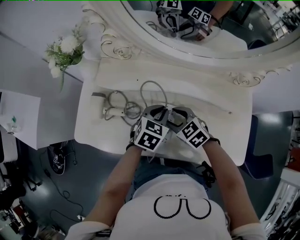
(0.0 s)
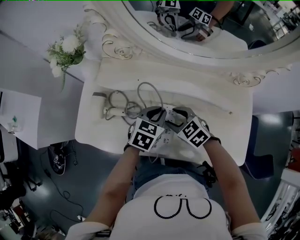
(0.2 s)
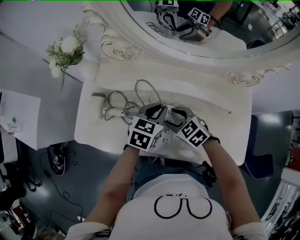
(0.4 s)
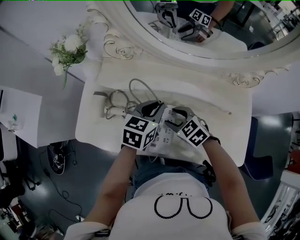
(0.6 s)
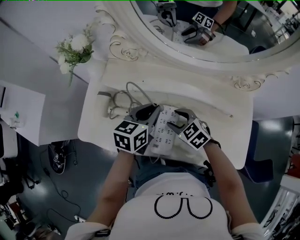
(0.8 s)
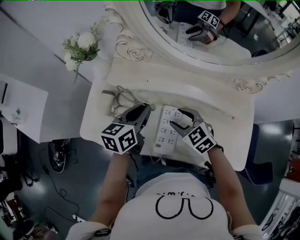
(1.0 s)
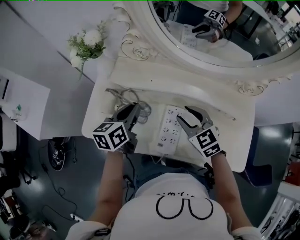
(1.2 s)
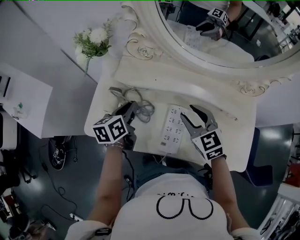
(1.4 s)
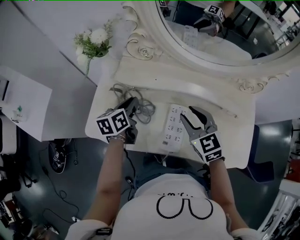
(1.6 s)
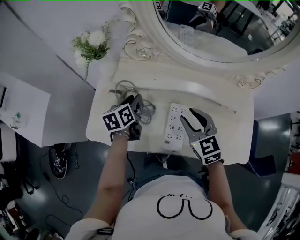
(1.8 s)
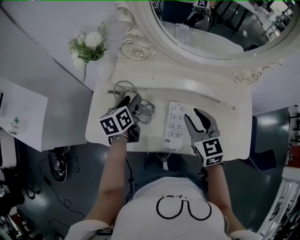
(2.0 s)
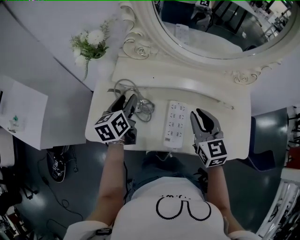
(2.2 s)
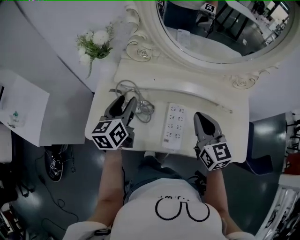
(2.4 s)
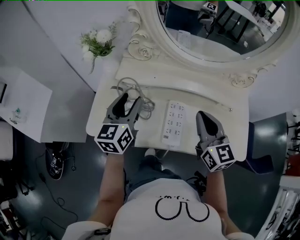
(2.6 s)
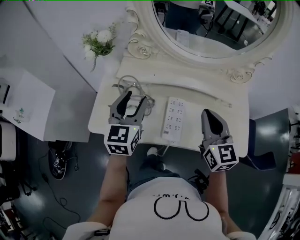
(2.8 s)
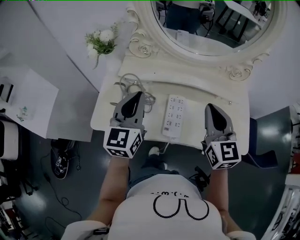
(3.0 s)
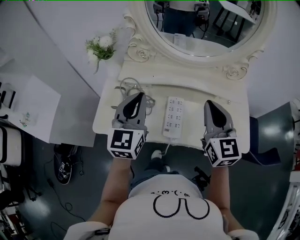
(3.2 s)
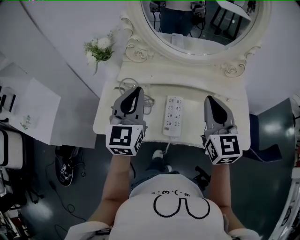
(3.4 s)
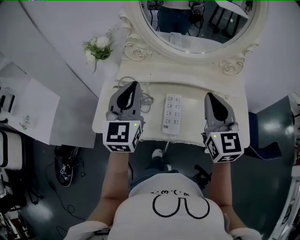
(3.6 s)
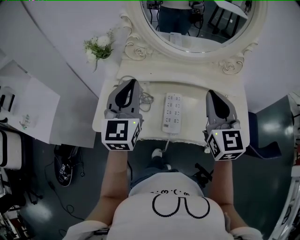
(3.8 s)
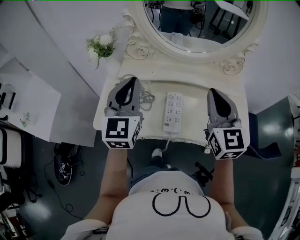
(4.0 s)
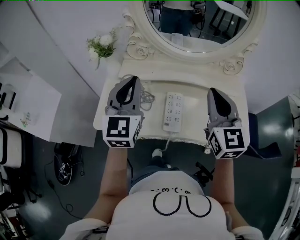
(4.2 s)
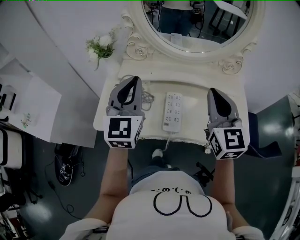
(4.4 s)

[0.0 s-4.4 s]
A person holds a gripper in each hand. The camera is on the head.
0.0 to 1.4 s: The left gripper heads to the left, covering about 20 cm, and twists some 40 degrees counterclockwise, seen from behind. The right gripper moves upward, some 10 cm, and rotates roughly 20 degrees.
1.4 to 3.0 s: The two grippers go about 20 cm upward and backward. The left gripper changes its angle by roughly 40 degrees, and opens and closes again. The right gripper turns by roughly 30 degrees, and closes.
3.0 to 4.4 s: The grippers both shift upward by roughly 5 cm.

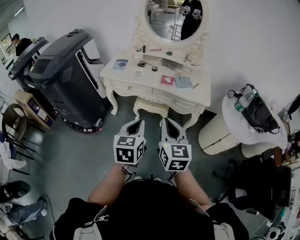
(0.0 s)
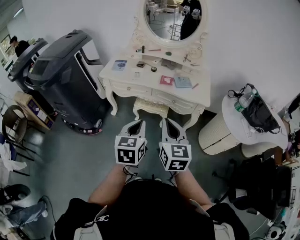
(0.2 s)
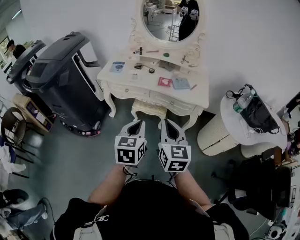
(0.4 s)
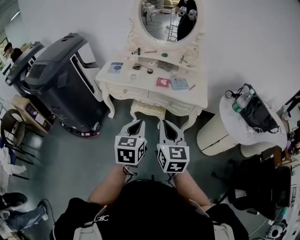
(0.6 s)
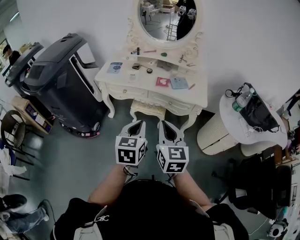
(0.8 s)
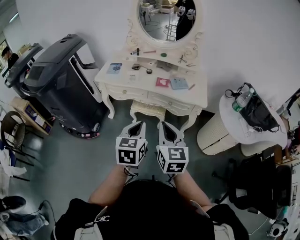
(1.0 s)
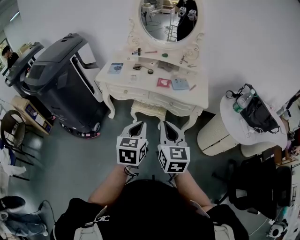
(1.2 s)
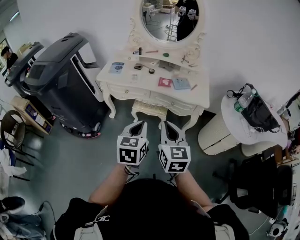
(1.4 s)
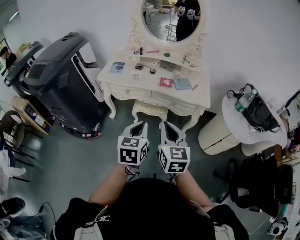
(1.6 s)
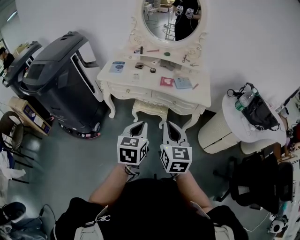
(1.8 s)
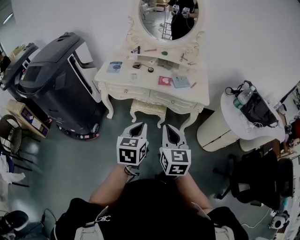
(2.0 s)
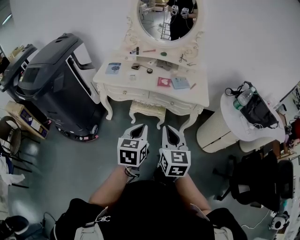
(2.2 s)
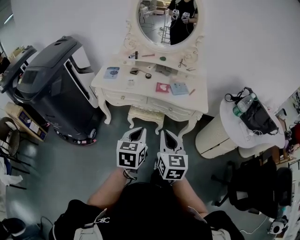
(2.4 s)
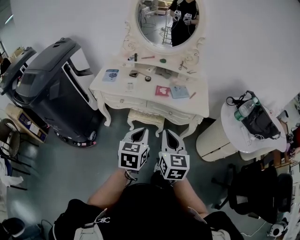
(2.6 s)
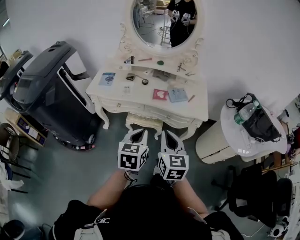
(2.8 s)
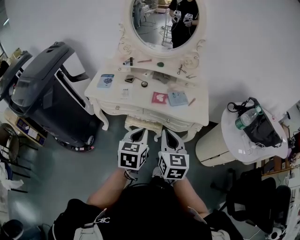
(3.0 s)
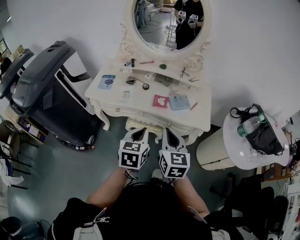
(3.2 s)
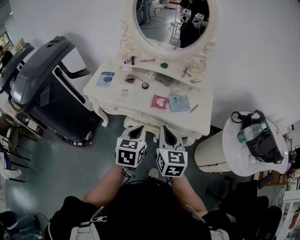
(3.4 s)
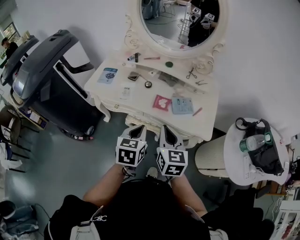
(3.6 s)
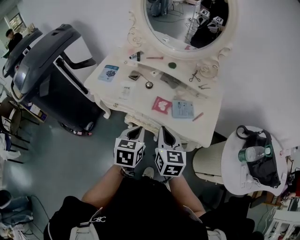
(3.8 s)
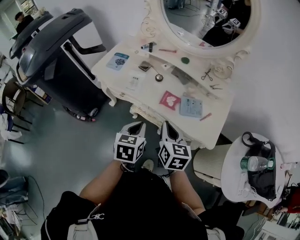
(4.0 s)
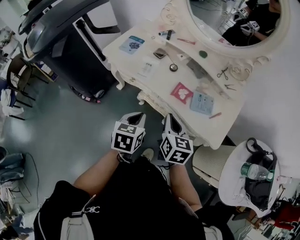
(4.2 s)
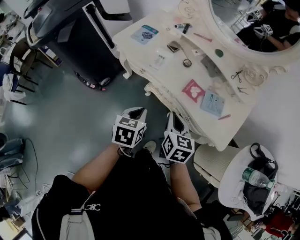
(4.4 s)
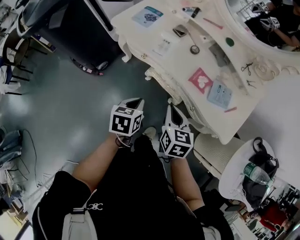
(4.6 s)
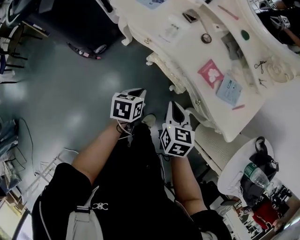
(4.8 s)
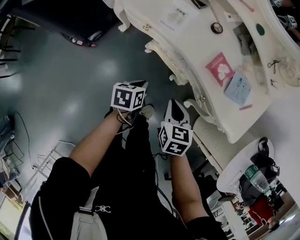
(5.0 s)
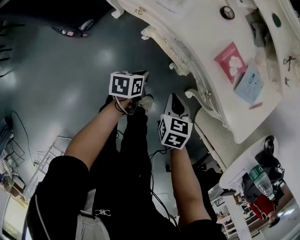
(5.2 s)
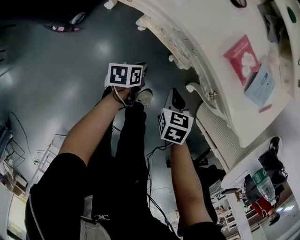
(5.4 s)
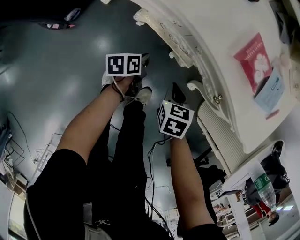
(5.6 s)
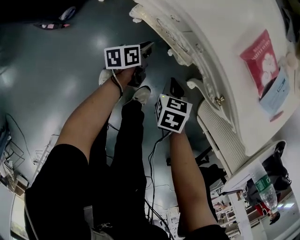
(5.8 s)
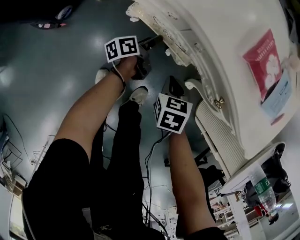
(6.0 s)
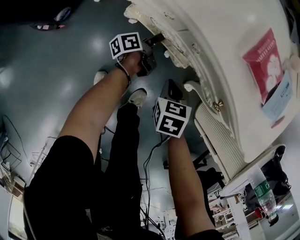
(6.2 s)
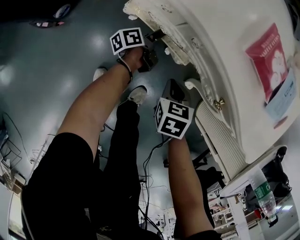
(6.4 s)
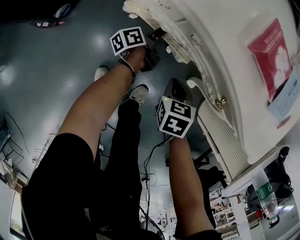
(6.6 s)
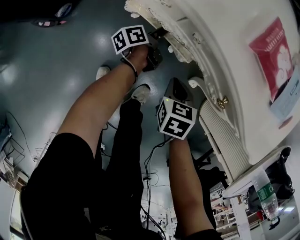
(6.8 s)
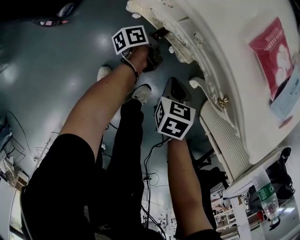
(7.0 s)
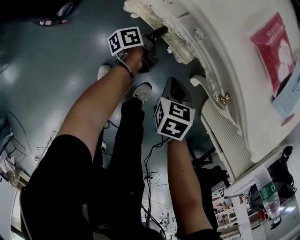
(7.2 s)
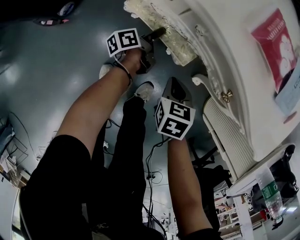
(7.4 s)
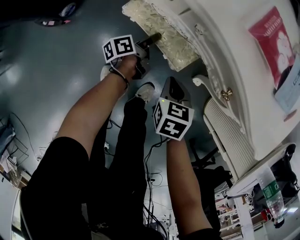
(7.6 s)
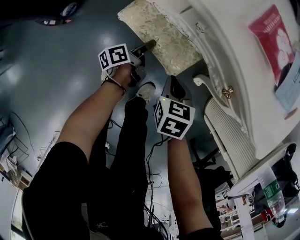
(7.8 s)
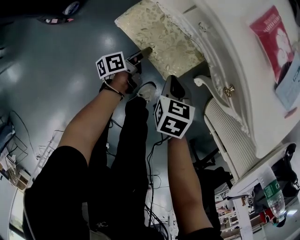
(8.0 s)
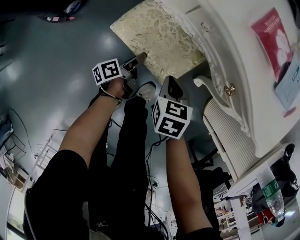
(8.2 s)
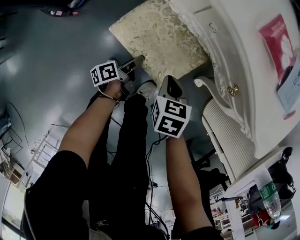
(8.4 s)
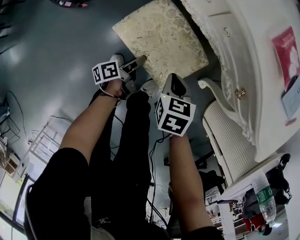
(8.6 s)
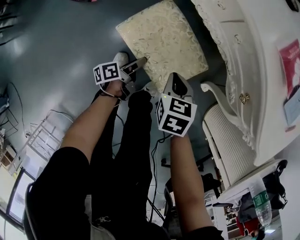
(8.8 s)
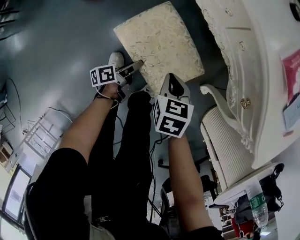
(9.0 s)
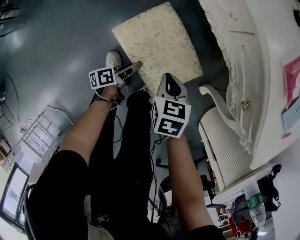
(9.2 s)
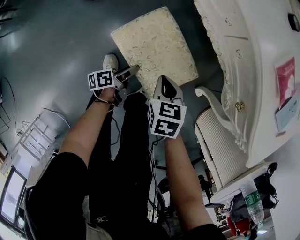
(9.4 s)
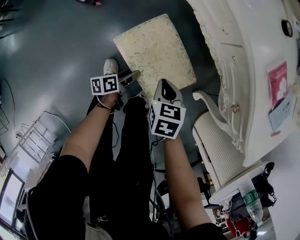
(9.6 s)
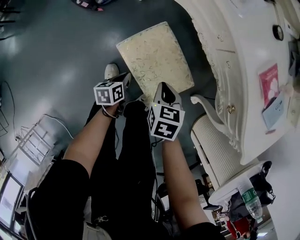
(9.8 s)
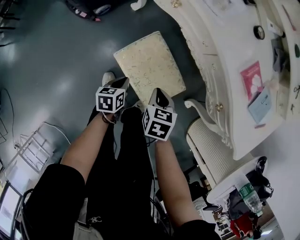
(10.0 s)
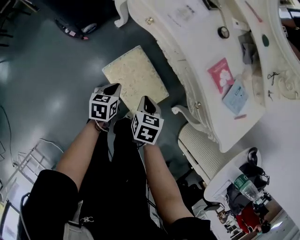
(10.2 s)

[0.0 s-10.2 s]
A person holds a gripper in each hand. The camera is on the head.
0.0 to 1.4 s: The grippers make only small movements.
1.4 to 3.0 s: The two grippers go about 15 cm forward.
3.0 to 4.4 s: The right gripper goes roughly 20 cm forward and downward, and turns by about 30 degrees. The left gripper goes roughly 15 cm downward, forward and to the left, and turns by approximately 30 degrees.
4.4 to 5.8 s: Both grippers travel together downward, roughly 40 cm. The right gripper tilts its fingers approximately 30 degrees downward. The left gripper rotates about 40 degrees.
5.8 to 7.2 s: The left gripper shifts by approximately 5 cm, turns by some 20 degrees, and opens.
7.2 to 8.8 s: The right gripper heads to the left, covering about 5 cm; the left gripper heads backward, covering some 25 cm.
8.8 to 10.2 s: The right gripper is displaced upward and to the left by about 10 cm, while the left gripper is displaced upward by roughly 20 cm, rotates around the line of its fingers by approximately 50 degrees, clockwise from behind, and closes its fingers.

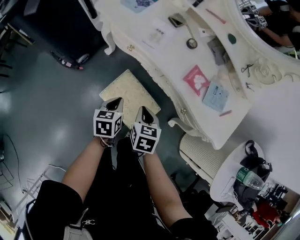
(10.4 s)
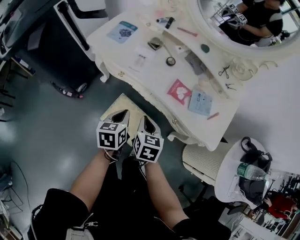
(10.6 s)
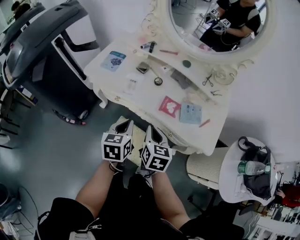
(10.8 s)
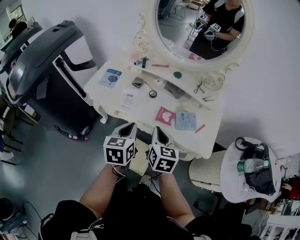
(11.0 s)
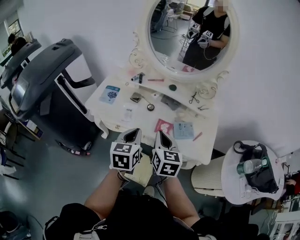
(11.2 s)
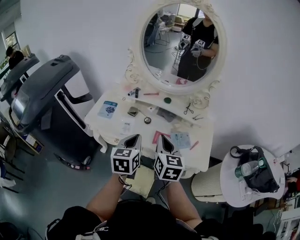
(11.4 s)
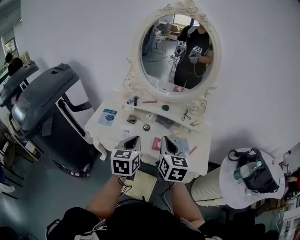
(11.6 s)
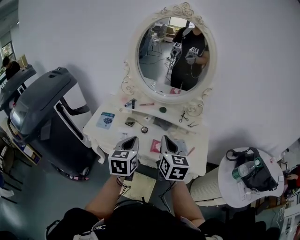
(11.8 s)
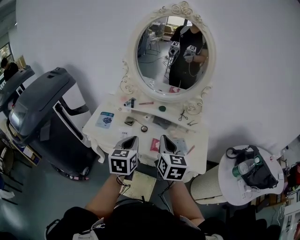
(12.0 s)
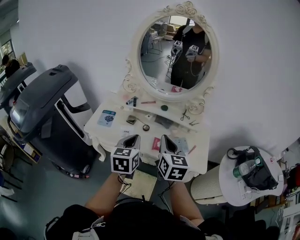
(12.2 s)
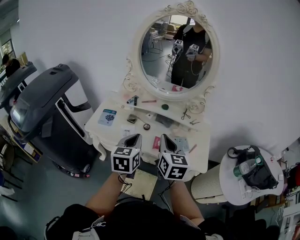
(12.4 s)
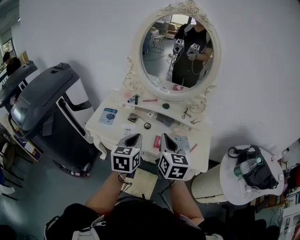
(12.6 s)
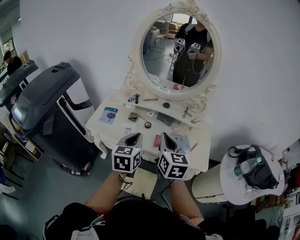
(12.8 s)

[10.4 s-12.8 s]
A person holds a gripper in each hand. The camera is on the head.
10.4 to 11.6 s: The two grippers go about 40 cm upward. The right gripper angles its fingers upward, by about 30 degrees. The left gripper swivels about 40 degrees.
11.6 to 12.8 s: The grippers make only small movements.

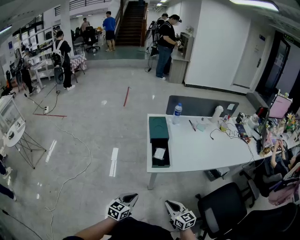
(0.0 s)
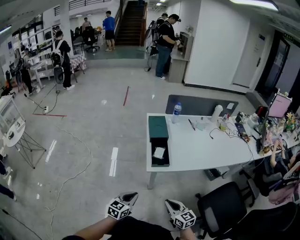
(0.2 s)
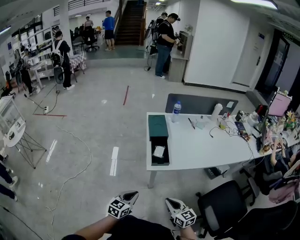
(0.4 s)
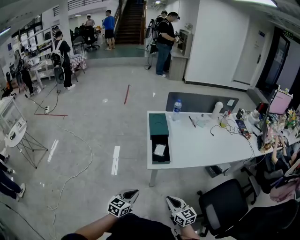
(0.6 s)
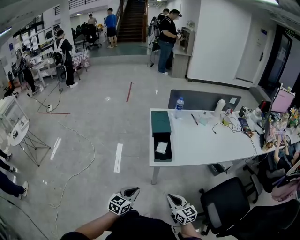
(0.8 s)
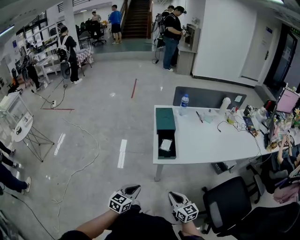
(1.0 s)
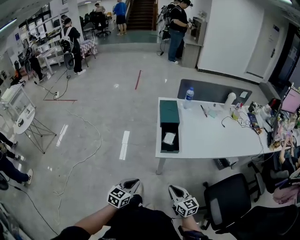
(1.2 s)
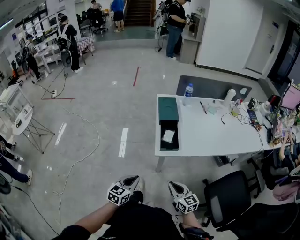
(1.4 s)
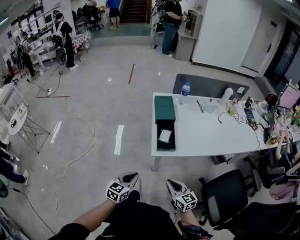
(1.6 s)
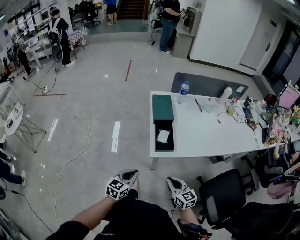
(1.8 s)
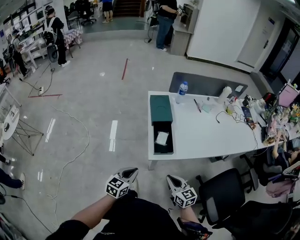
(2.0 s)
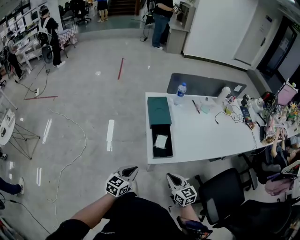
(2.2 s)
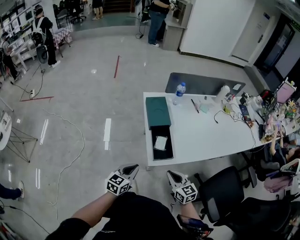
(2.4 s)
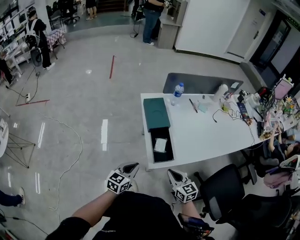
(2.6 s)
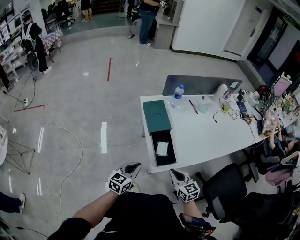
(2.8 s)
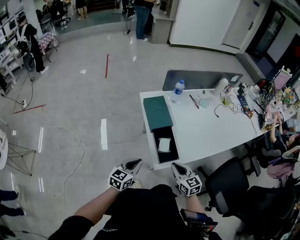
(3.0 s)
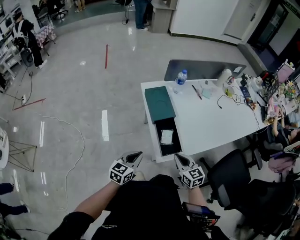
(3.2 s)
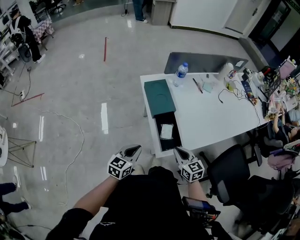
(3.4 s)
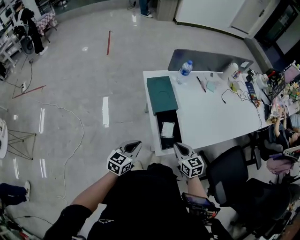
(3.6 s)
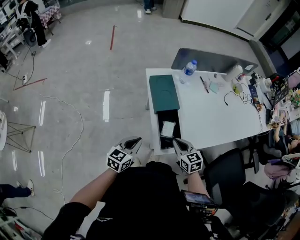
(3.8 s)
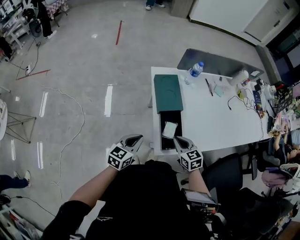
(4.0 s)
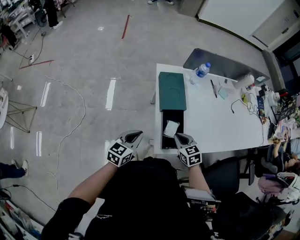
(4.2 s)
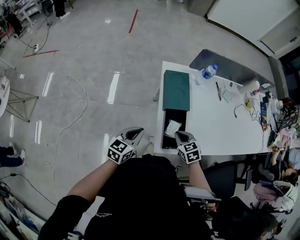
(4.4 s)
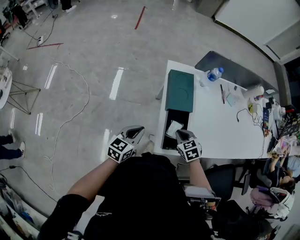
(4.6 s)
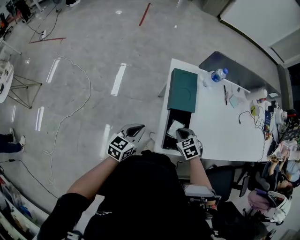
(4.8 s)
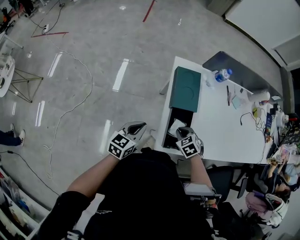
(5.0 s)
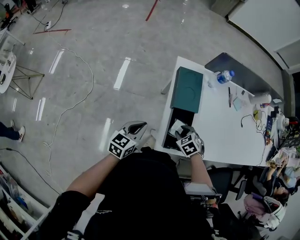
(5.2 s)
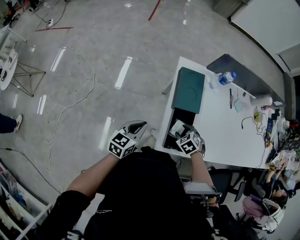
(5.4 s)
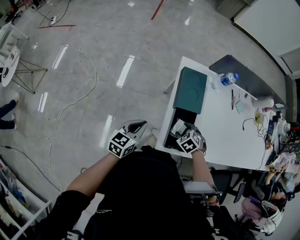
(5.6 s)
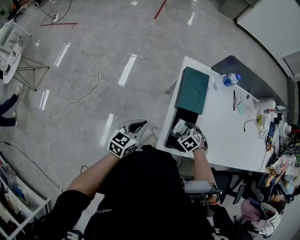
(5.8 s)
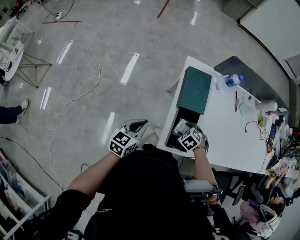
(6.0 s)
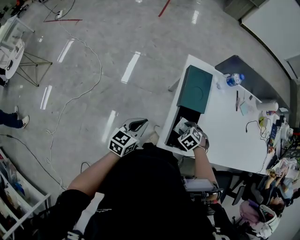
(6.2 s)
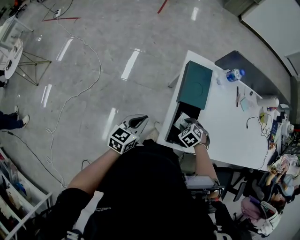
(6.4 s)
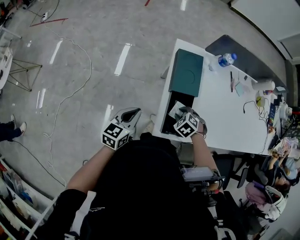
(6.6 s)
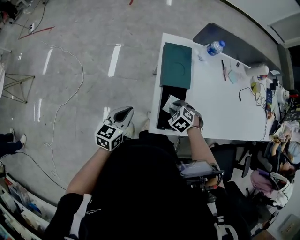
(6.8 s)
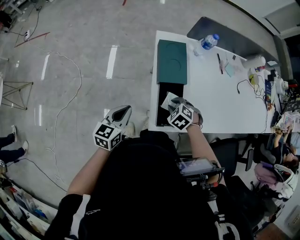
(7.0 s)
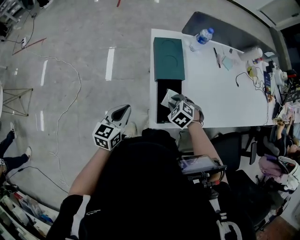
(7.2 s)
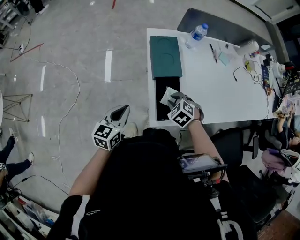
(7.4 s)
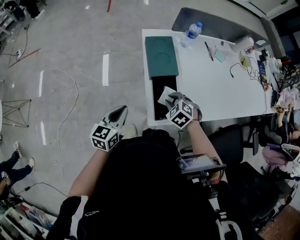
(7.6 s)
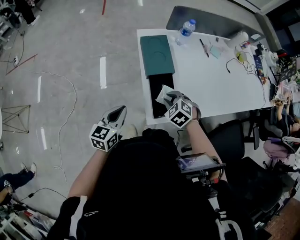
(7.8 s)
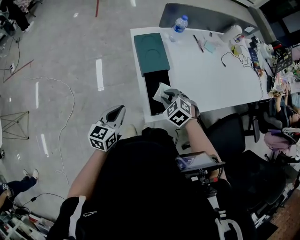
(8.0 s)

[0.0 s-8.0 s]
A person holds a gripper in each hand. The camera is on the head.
0.0 to 1.6 s: The right gripper travels forward by roughly 5 cm.
1.6 to 3.2 s: Both grippers move forward, approximately 20 cm.
3.2 to 4.8 s: The left gripper heads forward, covering roughly 5 cm. The right gripper goes about 15 cm forward and downward, and points its fingers some 40 degrees further downward.
4.8 to 6.4 s: The right gripper changes its angle by some 30 degrees, and opens its fingers.
6.4 to 8.0 s: The right gripper goes some 10 cm upward, and swivels some 20 degrees.
